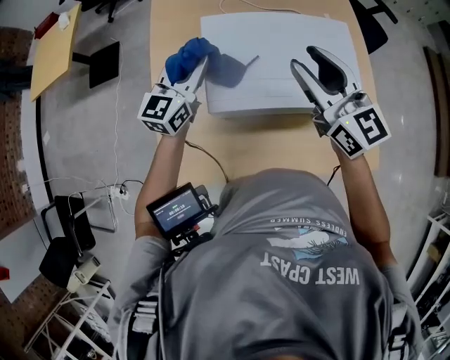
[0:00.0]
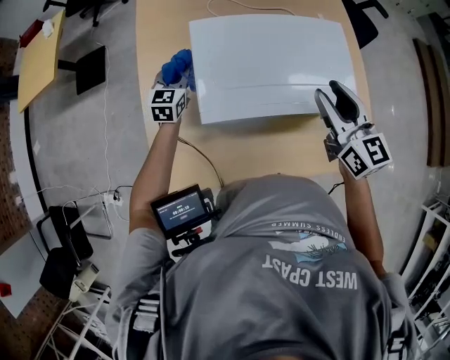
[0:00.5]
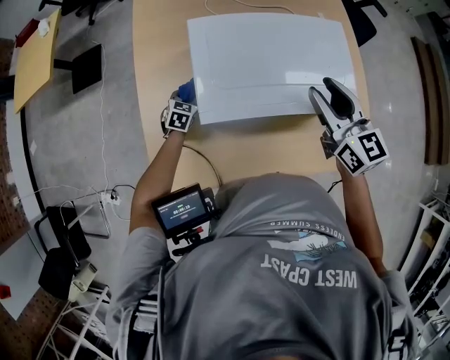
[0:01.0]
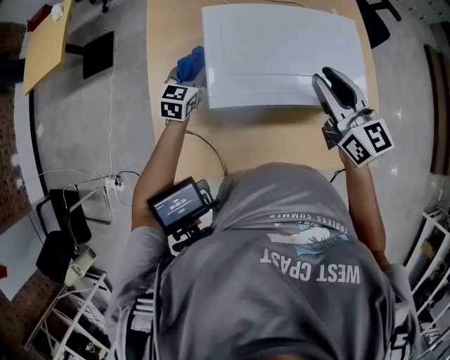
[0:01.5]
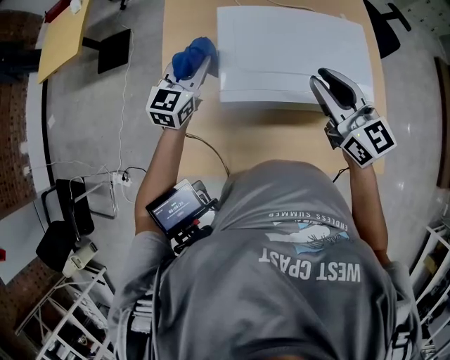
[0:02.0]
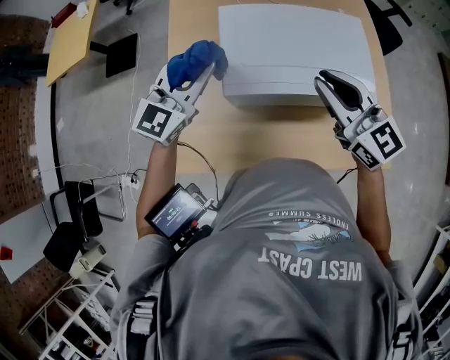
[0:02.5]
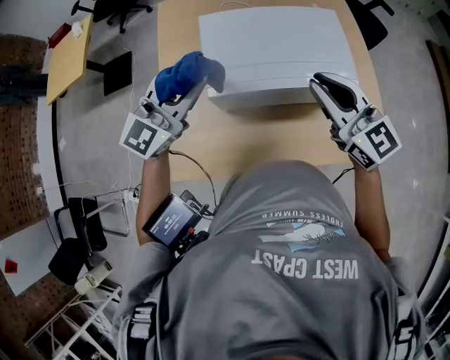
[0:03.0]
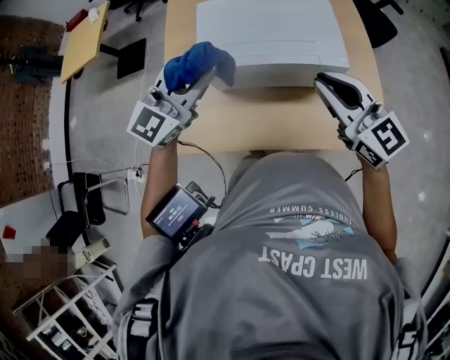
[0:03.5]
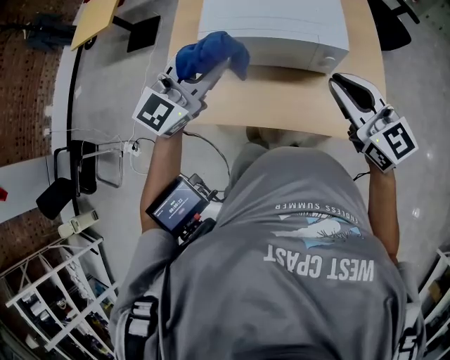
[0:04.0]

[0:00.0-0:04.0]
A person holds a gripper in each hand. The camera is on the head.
0:00.0 to 0:02.0: The right gripper is displaced downward by roughly 5 cm, and reaches approximately 10 cm to the right, then returns; the left gripper moves roughly 30 cm downward and comes back.
0:02.0 to 0:04.0: The right gripper shifts roughly 15 cm backward and to the right. The left gripper heads backward, upward and to the right, covering approximately 25 cm, and swivels approximately 20 degrees.

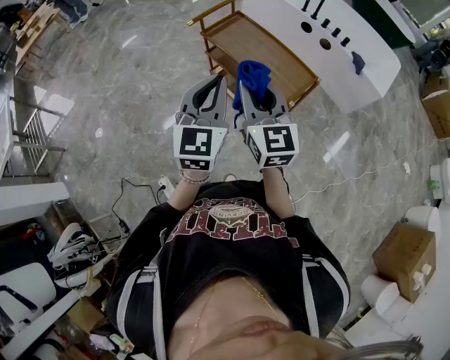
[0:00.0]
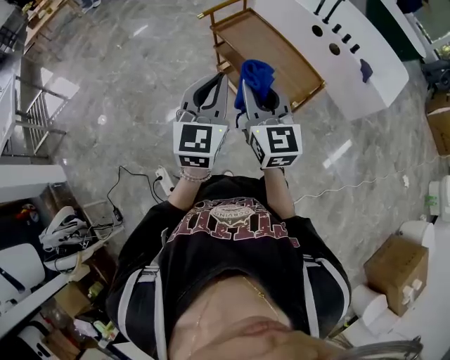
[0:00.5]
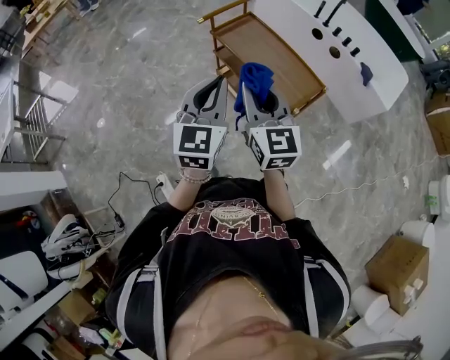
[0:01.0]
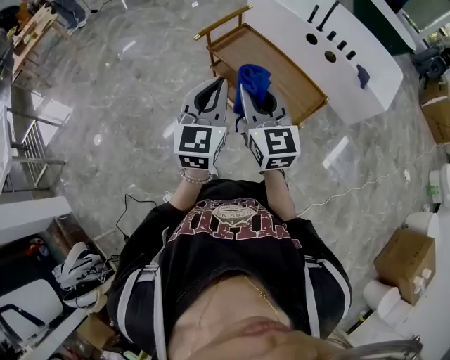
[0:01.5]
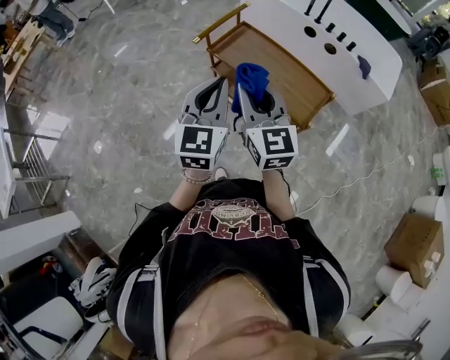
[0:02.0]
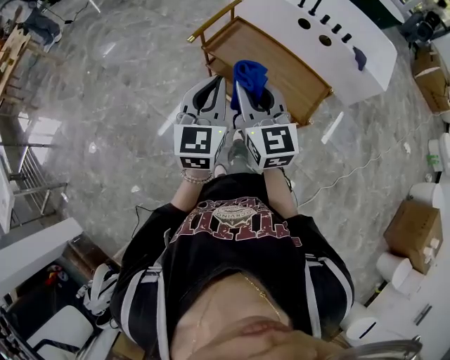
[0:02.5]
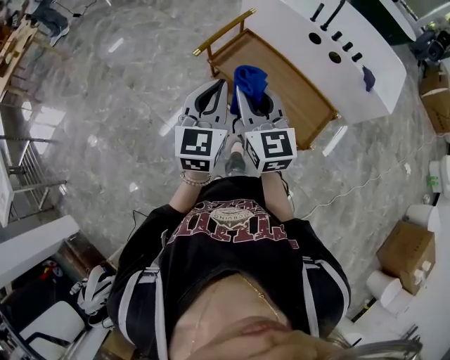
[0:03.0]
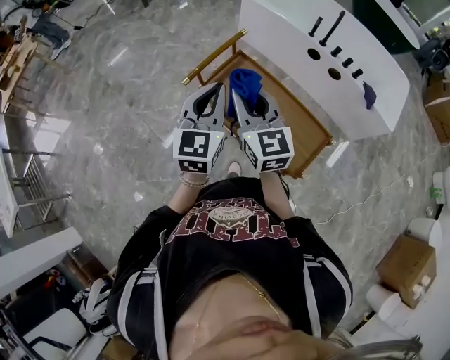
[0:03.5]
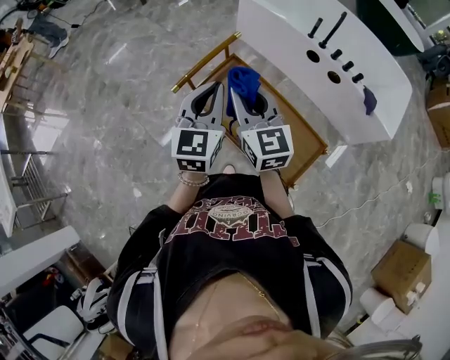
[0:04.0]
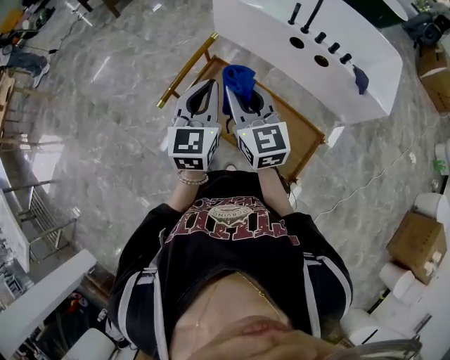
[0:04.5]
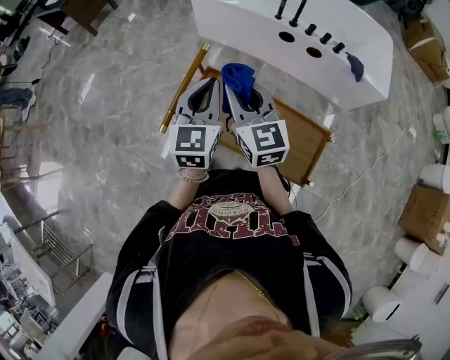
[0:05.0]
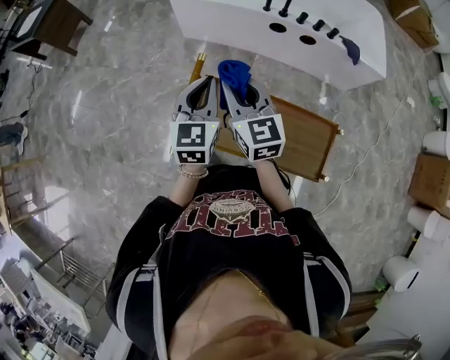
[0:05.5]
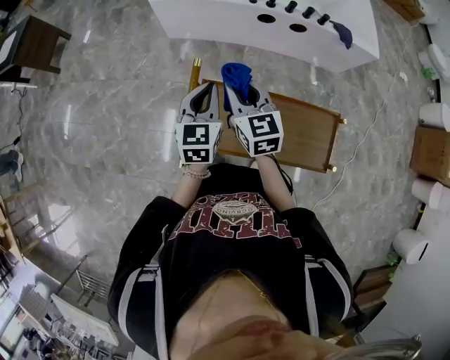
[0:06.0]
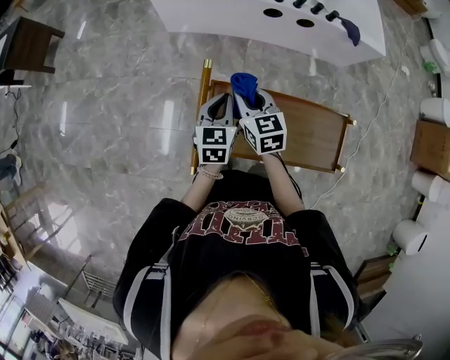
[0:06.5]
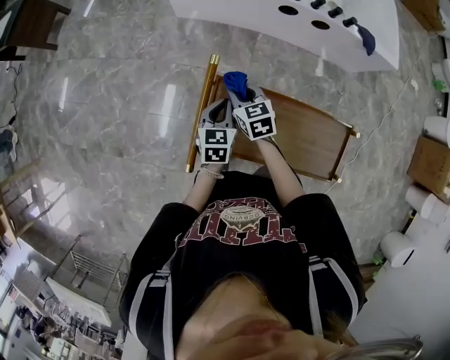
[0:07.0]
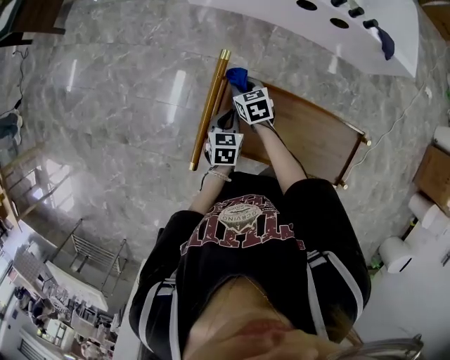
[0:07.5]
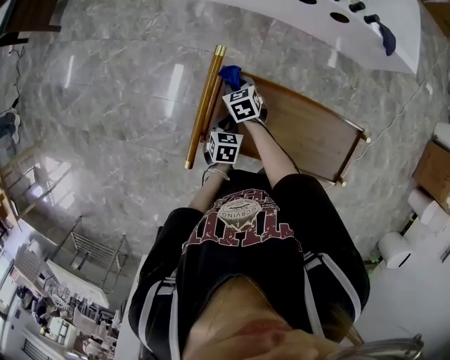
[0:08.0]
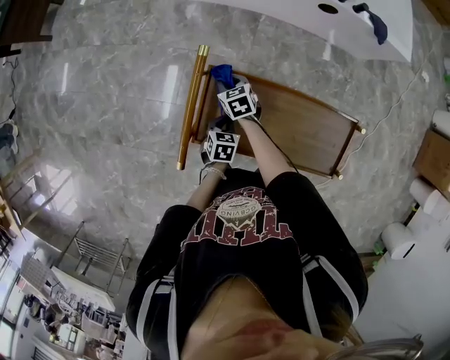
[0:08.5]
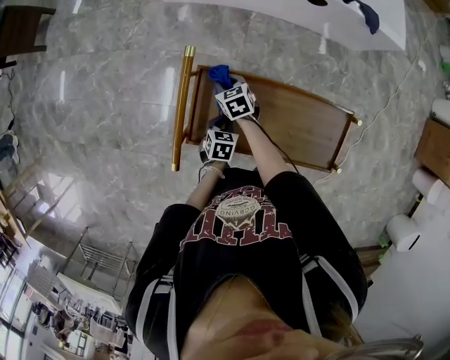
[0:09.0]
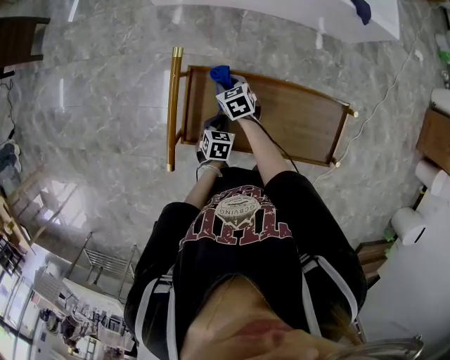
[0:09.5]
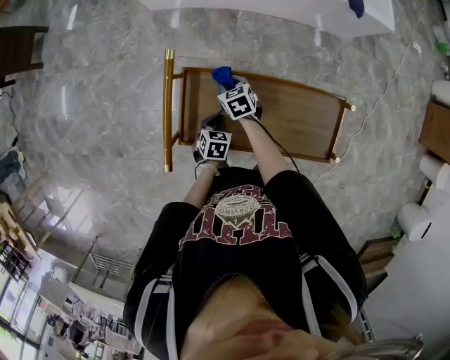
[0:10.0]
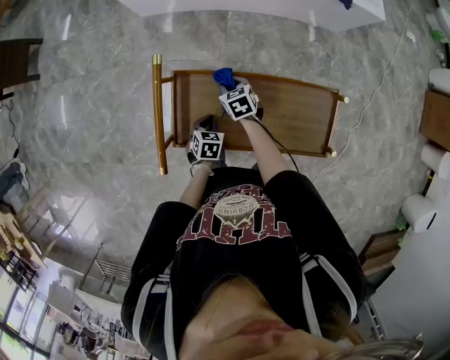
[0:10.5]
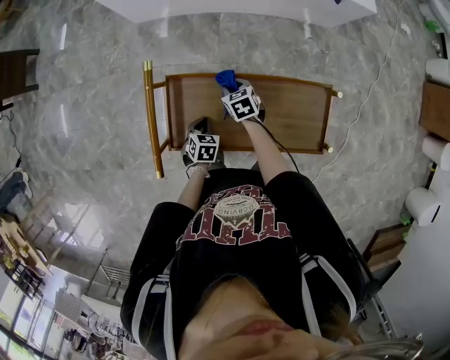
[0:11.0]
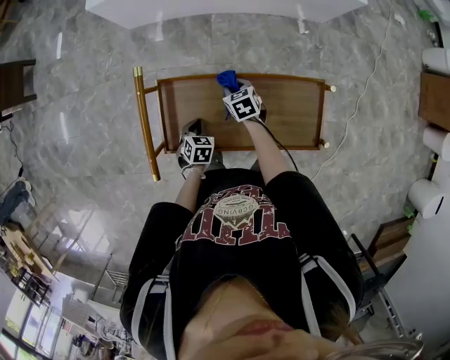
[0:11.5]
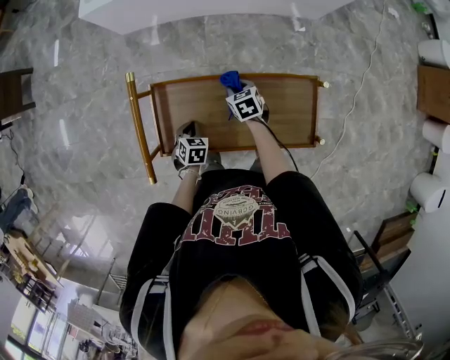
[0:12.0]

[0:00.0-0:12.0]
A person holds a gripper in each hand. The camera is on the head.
0:00.0 to 0:02.0: The two grippers go some 15 cm forward and to the left.
0:02.0 to 0:04.0: The grippers both shift forward by some 30 cm.
0:04.0 to 0:06.0: The right gripper ends up some 30 cm from where it was, and swivels approximately 40 degrees, while the left gripper ends up about 30 cm from where it was, and swivels roughly 30 degrees.
0:06.0 to 0:08.0: The two grippers go about 30 cm downward. The right gripper angles its fingers downward, by roughly 30 degrees; the left gripper tips its fingers downward by approximately 30 degrees.
0:08.0 to 0:10.0: The left gripper is displaced to the right by roughly 5 cm, while the right gripper shifts roughly 10 cm to the right.
0:10.0 to 0:12.0: The right gripper is displaced to the right by approximately 15 cm.

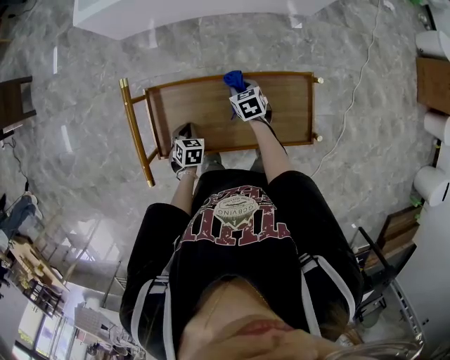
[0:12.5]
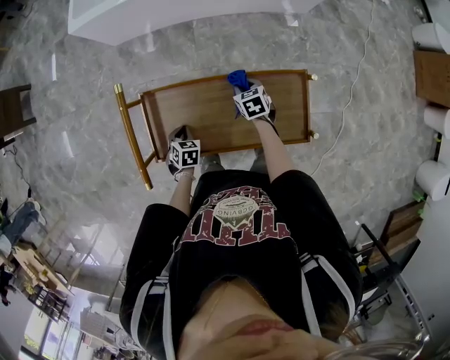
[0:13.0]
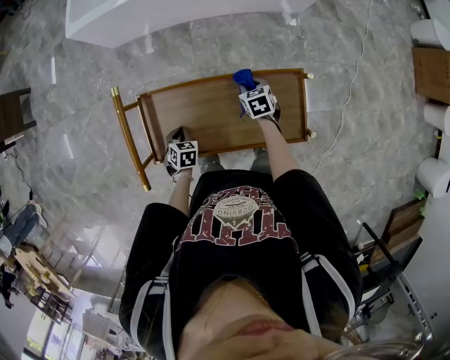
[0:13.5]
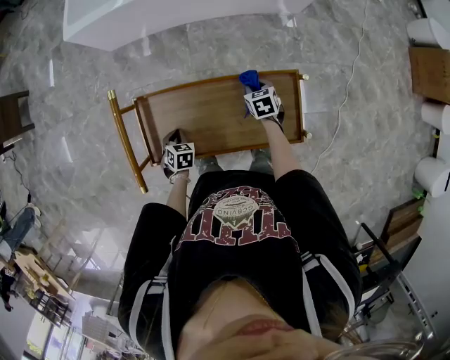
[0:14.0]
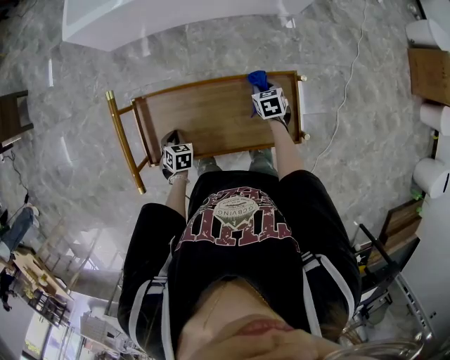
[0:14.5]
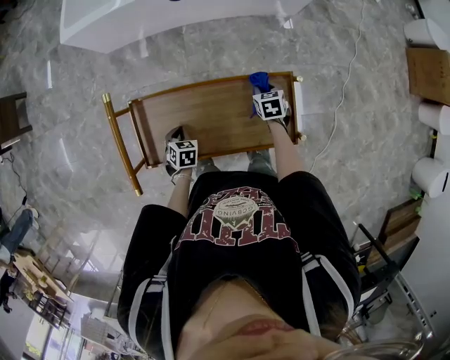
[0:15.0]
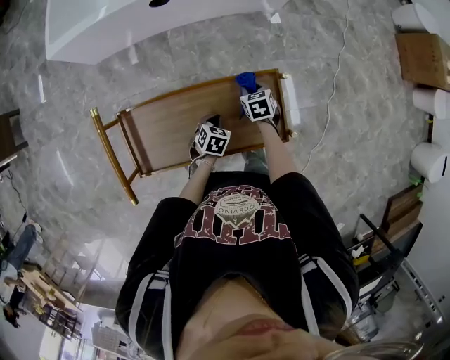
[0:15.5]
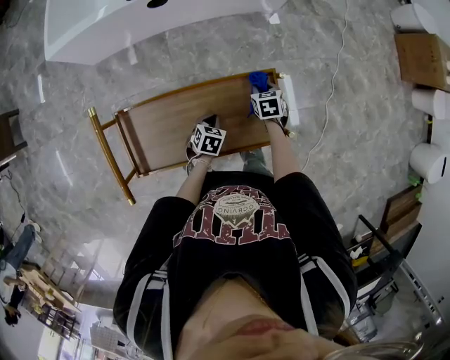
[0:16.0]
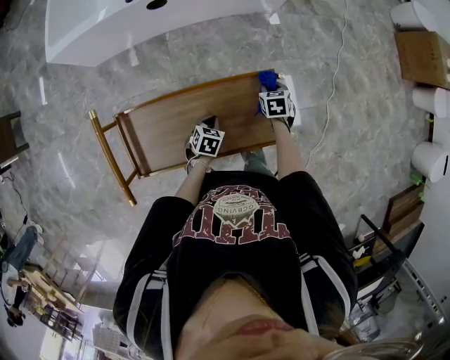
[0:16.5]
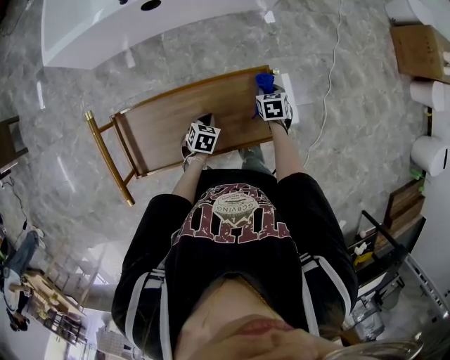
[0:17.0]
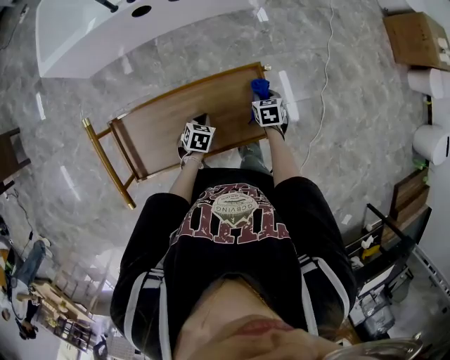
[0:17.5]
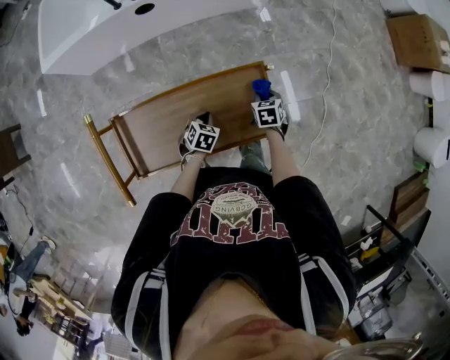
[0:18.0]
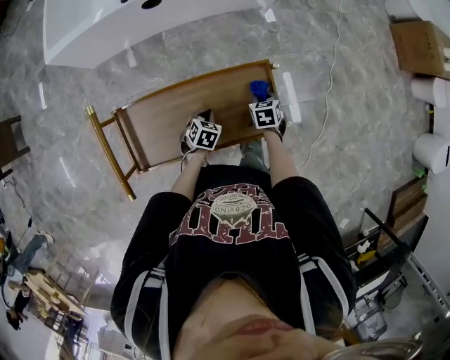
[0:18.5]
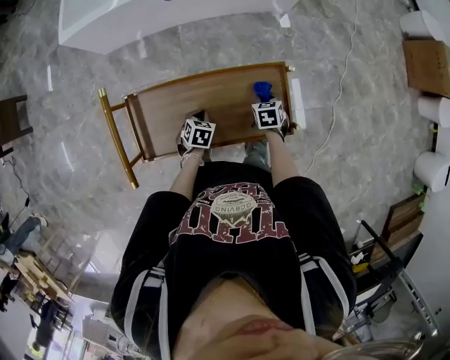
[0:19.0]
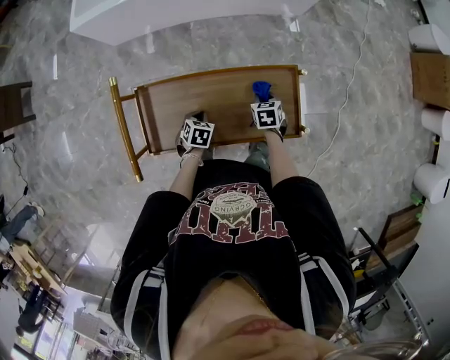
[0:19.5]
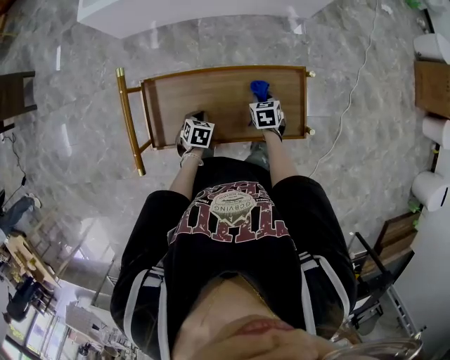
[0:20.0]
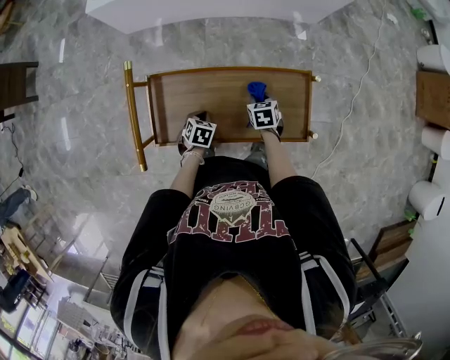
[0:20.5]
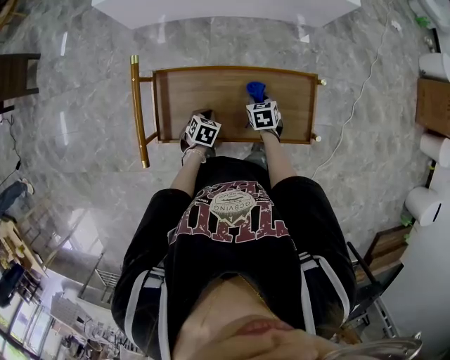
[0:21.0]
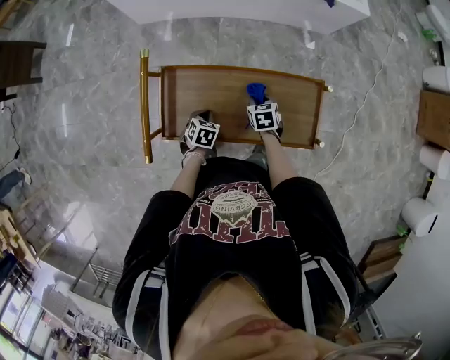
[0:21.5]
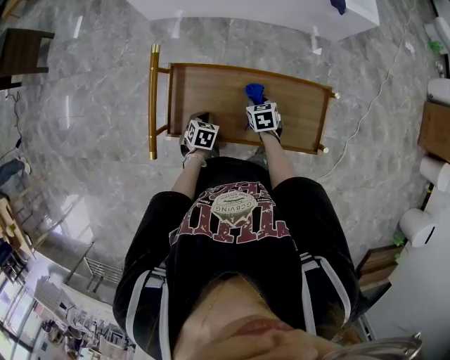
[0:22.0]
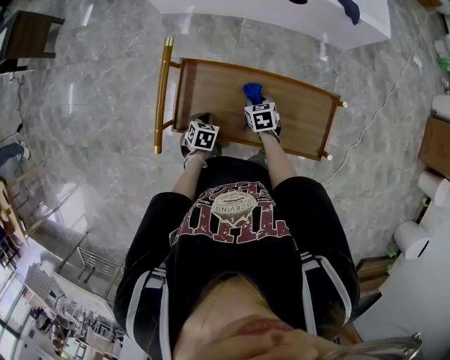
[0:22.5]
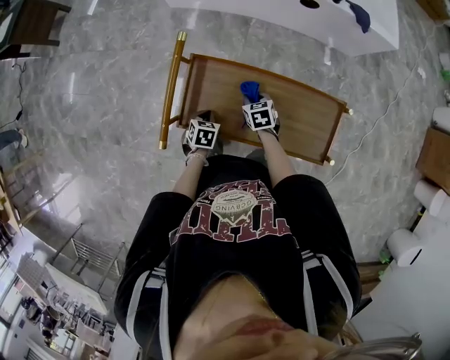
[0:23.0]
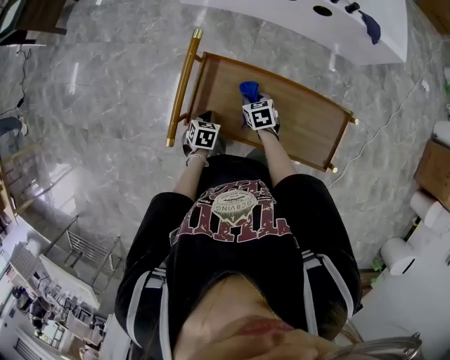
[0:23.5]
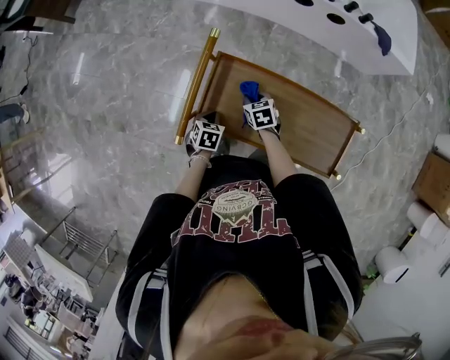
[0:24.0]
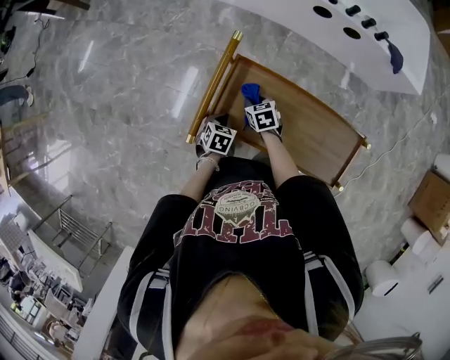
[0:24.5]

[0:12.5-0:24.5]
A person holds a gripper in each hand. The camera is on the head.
0:12.5 to 0:14.5: The right gripper travels to the right by about 15 cm.
0:14.5 to 0:16.5: The right gripper shifts by about 10 cm, while the left gripper changes place by approximately 25 cm, and swivels about 30 degrees.
0:16.5 to 0:18.5: The right gripper goes roughly 10 cm backward.
0:18.5 to 0:20.5: The right gripper heads to the left, covering roughly 15 cm, while the left gripper shifts roughly 15 cm to the left and backward.
0:20.5 to 0:22.5: The left gripper travels to the left by some 10 cm; the right gripper heads to the left, covering about 15 cm.
0:22.5 to 0:24.5: The right gripper moves to the left, approximately 20 cm; the left gripper shifts some 10 cm to the left.
